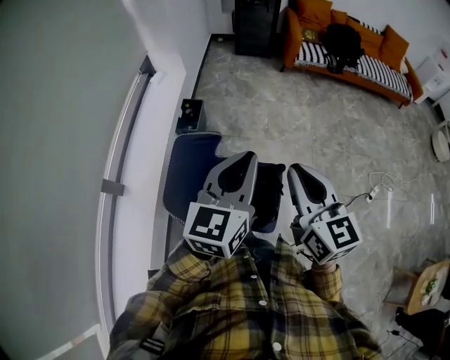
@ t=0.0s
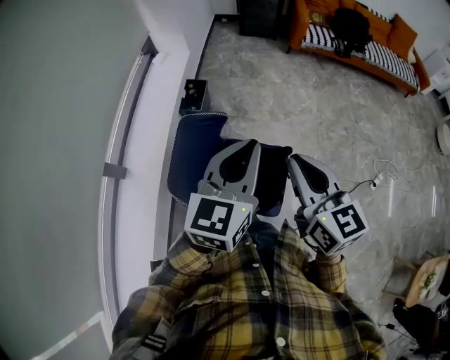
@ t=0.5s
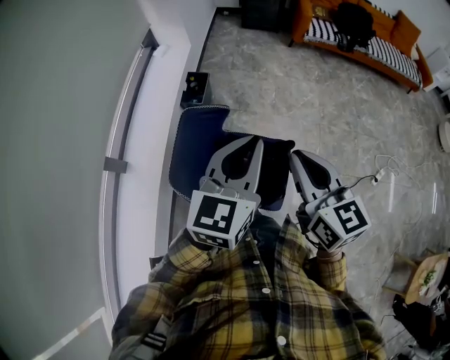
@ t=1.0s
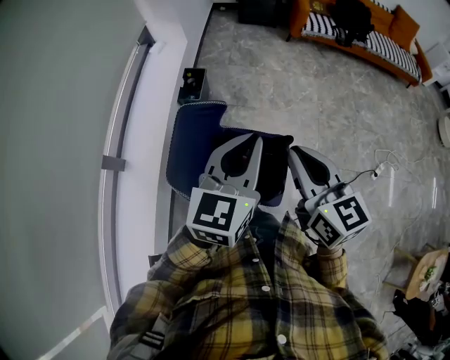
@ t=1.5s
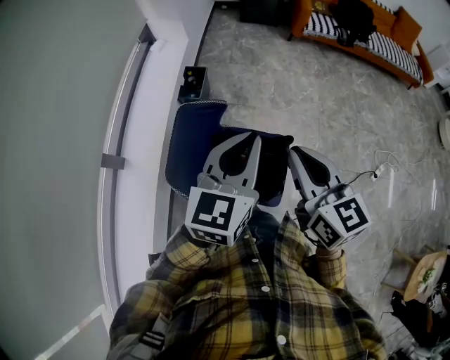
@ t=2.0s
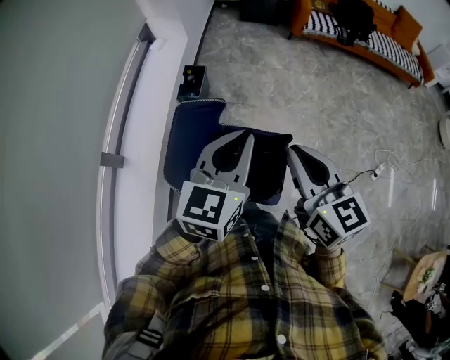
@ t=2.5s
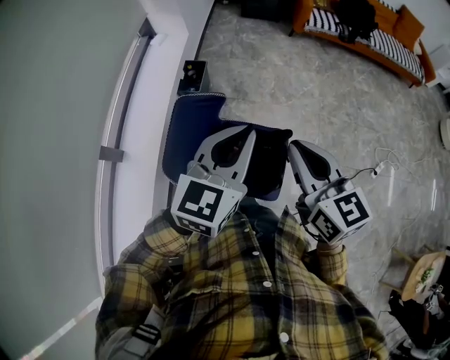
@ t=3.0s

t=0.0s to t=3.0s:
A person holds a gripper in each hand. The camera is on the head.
t=0.0s to t=3.0s: There are only small adjustments of the grippers.

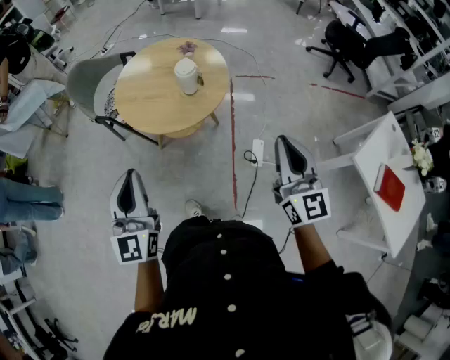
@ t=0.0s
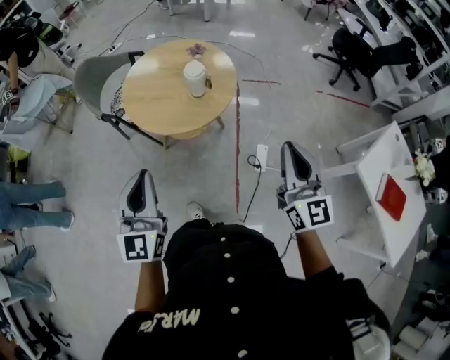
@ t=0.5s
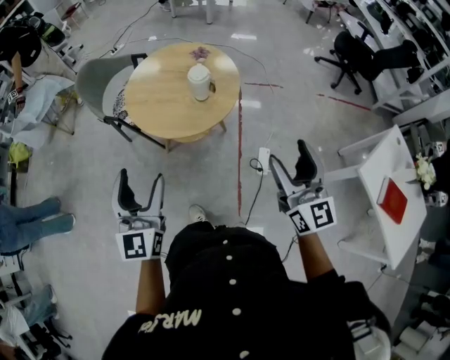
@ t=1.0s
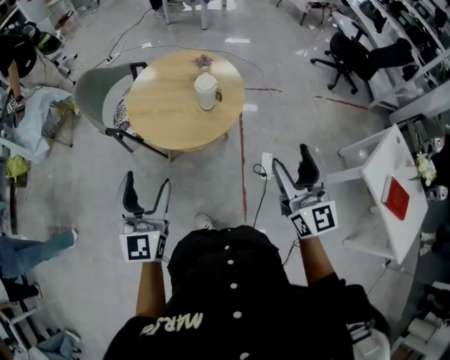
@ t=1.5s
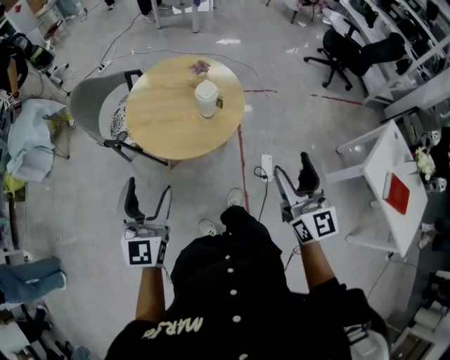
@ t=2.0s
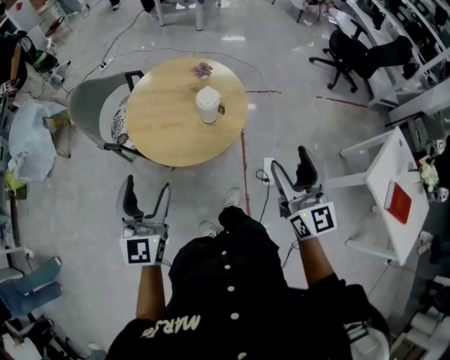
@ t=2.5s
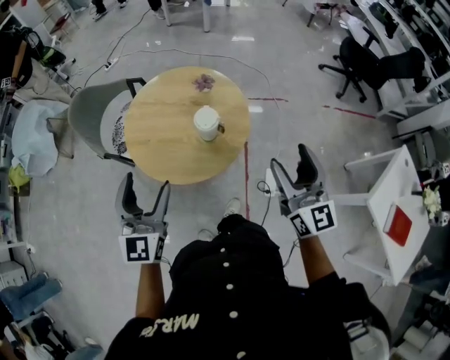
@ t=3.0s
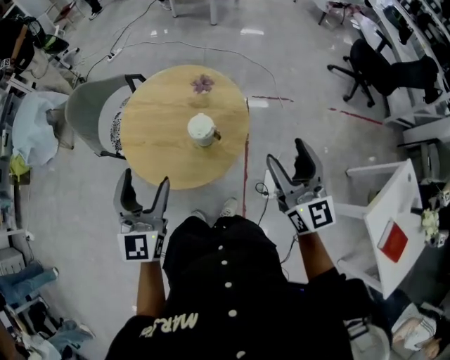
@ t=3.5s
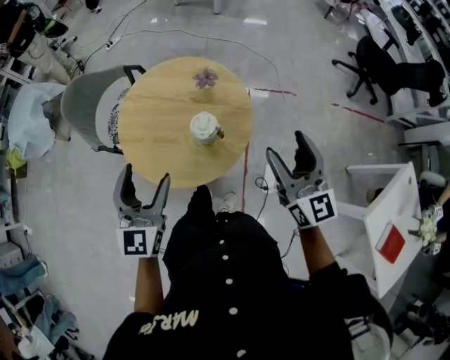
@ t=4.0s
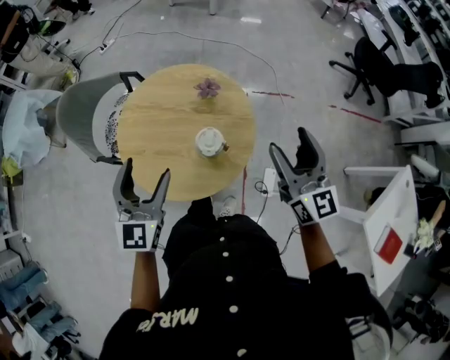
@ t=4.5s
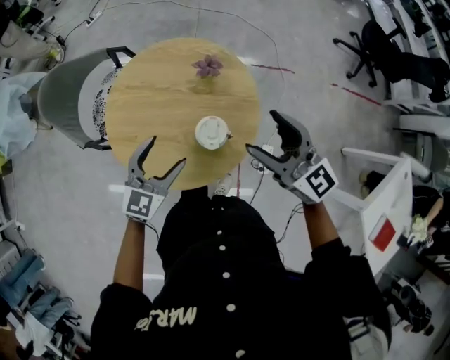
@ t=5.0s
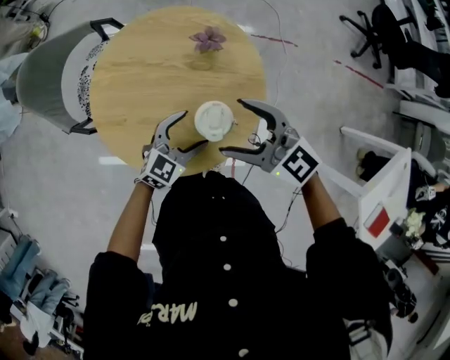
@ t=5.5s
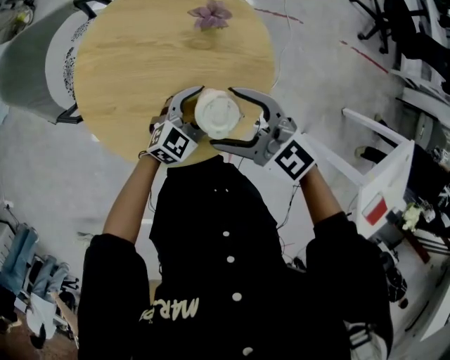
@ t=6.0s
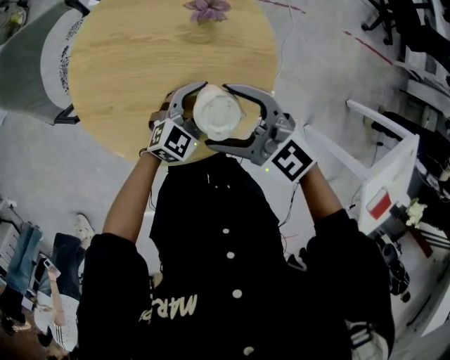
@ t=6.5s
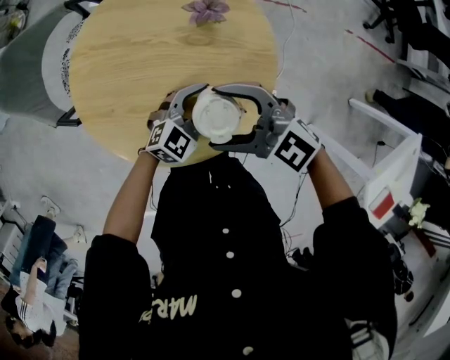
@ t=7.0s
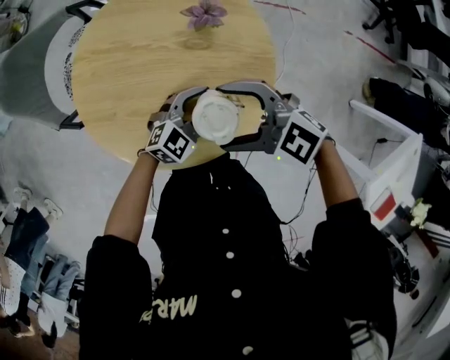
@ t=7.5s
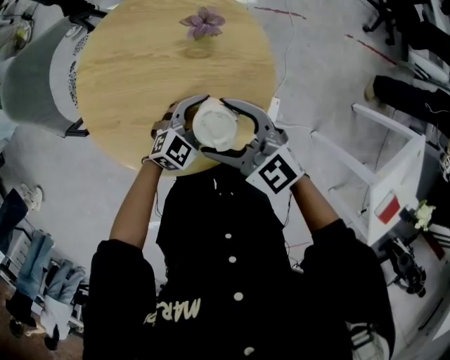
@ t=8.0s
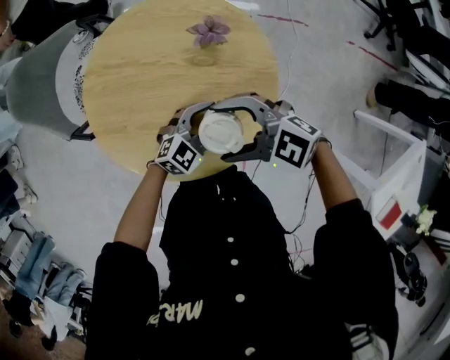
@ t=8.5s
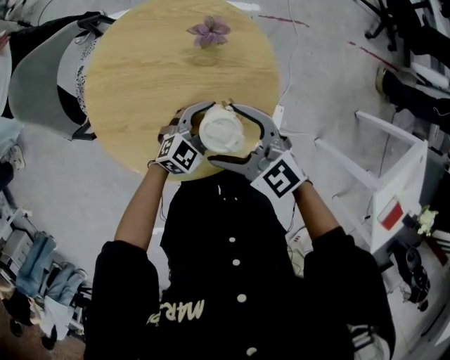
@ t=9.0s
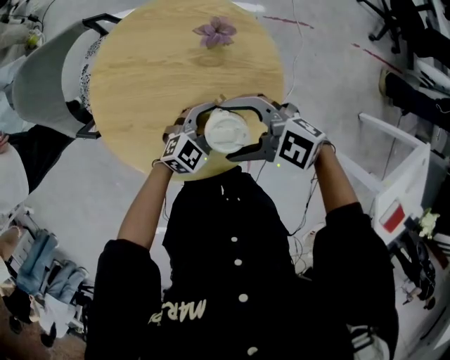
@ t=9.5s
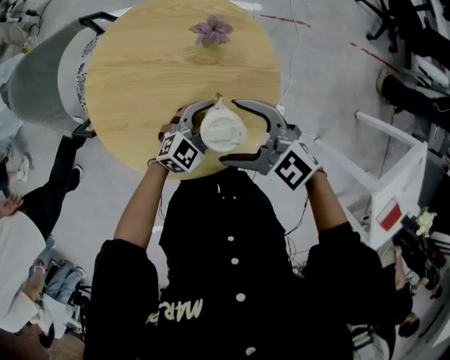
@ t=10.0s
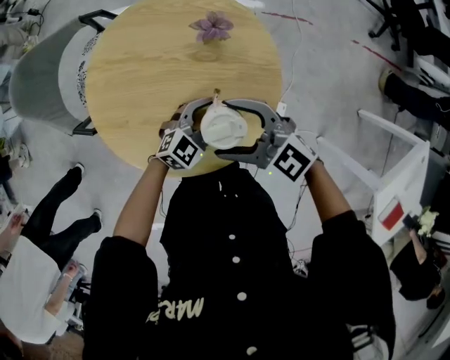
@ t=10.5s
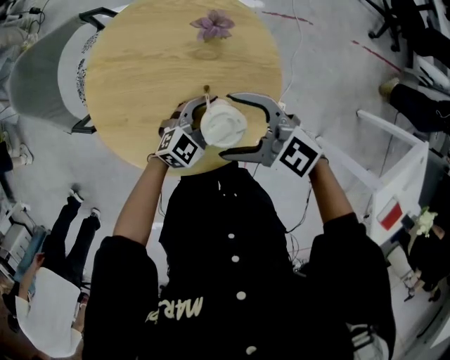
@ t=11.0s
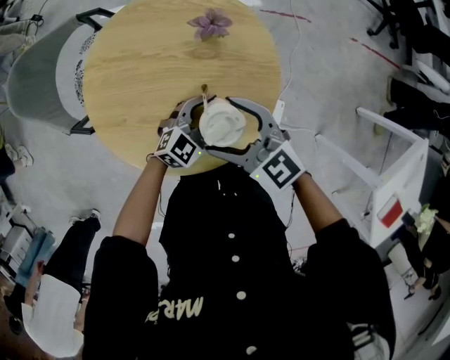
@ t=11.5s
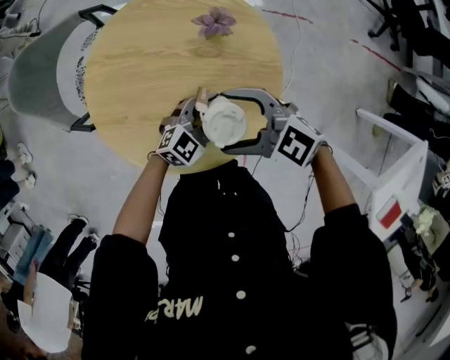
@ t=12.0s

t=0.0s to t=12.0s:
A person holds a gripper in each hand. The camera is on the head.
t=0.0s to t=2.0s: The right gripper heads to the left, covering approximately 10 cm, and opens. The left gripper goes about 10 cm forward and to the left, and opens its fingers.
t=2.0s to t=4.0s: Both grippers move forward, about 25 cm.
t=4.0s to t=6.0s: The left gripper travels downward by some 35 cm, and swivels roughly 50 degrees. The right gripper changes place by about 30 cm, and changes its angle by some 50 degrees.

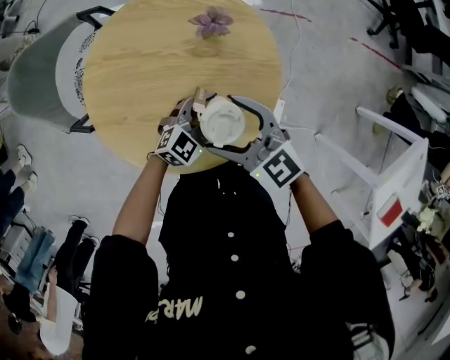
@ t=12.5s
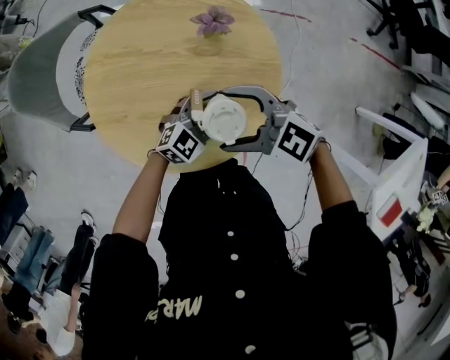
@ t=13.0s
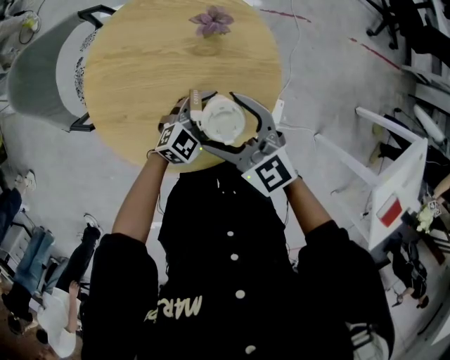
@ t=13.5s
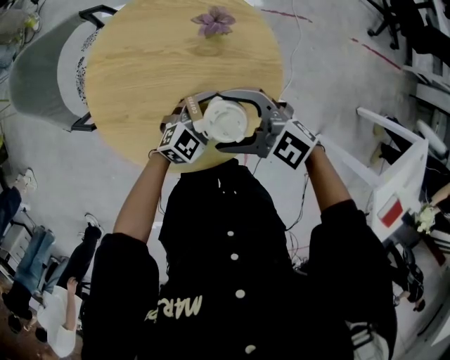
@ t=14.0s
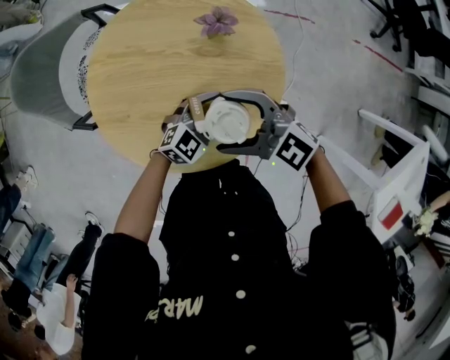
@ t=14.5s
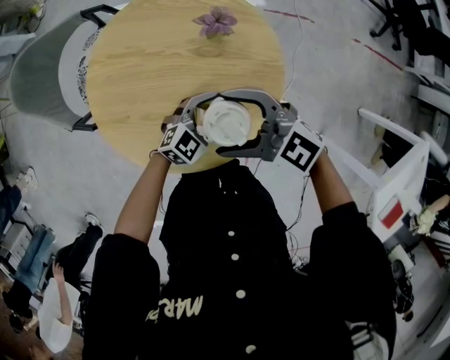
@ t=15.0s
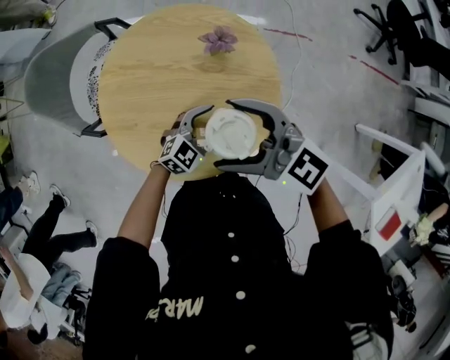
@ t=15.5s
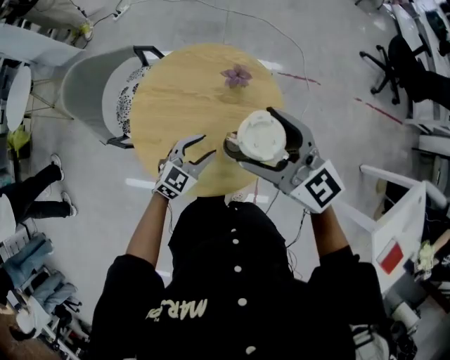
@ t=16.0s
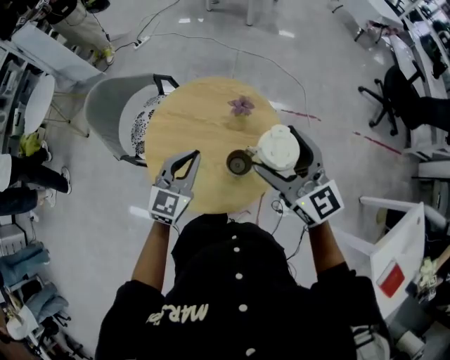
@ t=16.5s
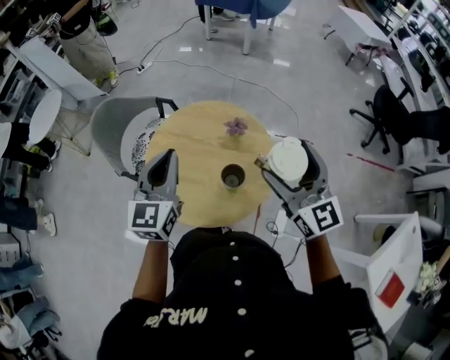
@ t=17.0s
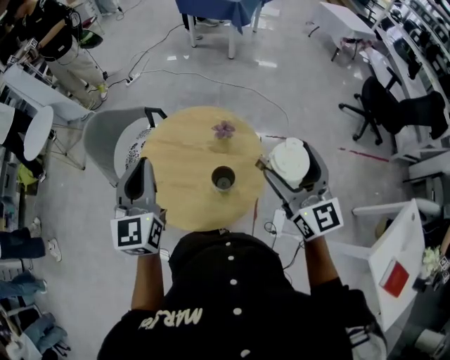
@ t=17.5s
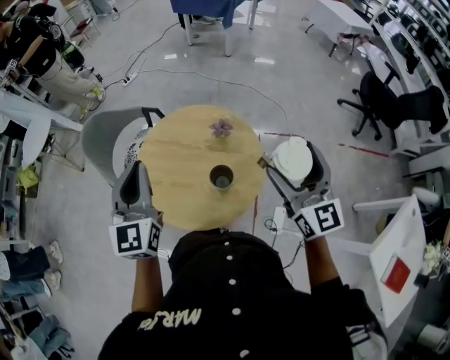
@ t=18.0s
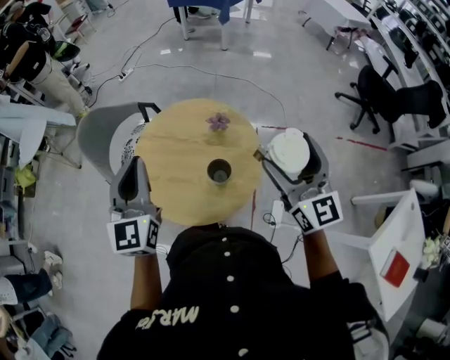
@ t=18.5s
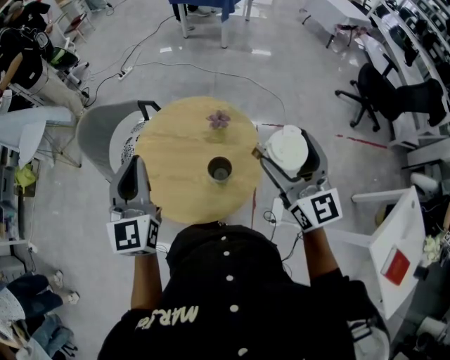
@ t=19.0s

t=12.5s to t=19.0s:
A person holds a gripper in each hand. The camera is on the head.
t=12.5s to t=14.5s: The right gripper swivels approximately 20 degrees.
t=14.5s to t=17.0s: The grippers both shift upward by some 35 cm. The left gripper changes its angle by some 60 degrees, and closes its fingers, while the right gripper changes its angle by some 50 degrees.
t=17.0s to t=19.0s: The left gripper shifts by some 5 cm.

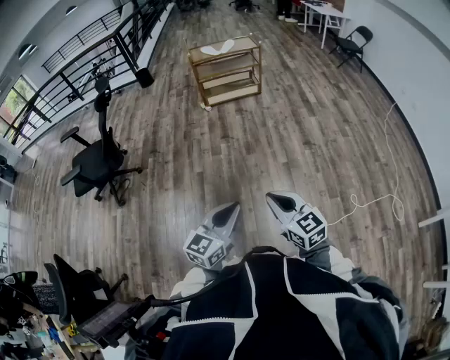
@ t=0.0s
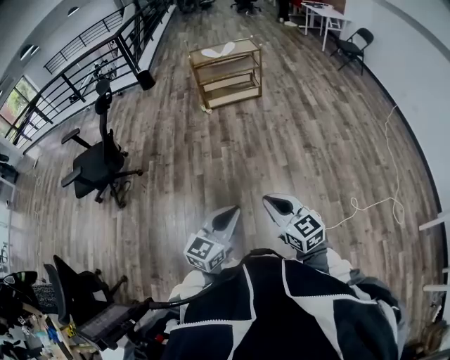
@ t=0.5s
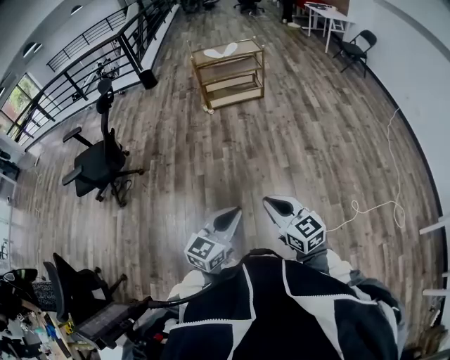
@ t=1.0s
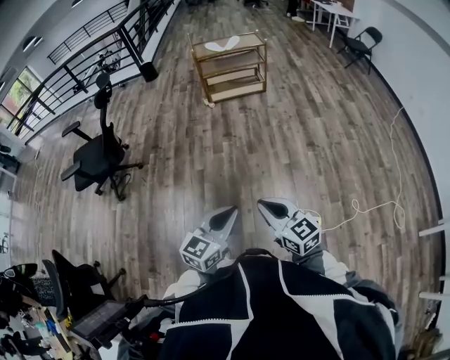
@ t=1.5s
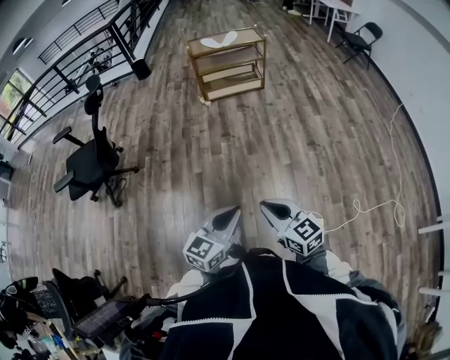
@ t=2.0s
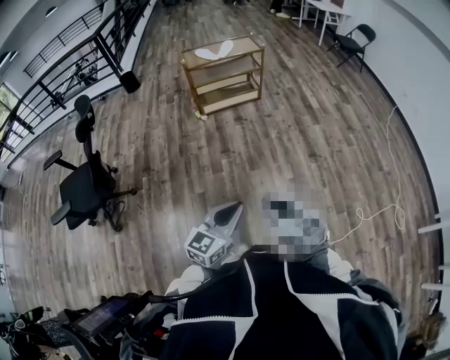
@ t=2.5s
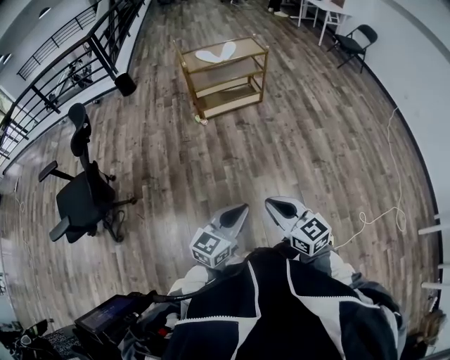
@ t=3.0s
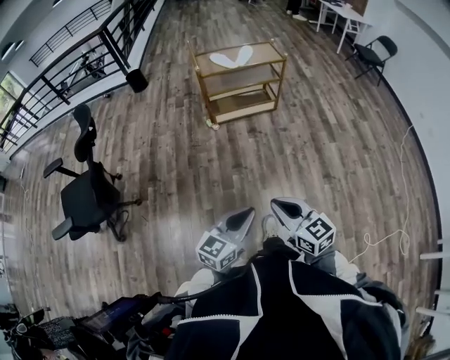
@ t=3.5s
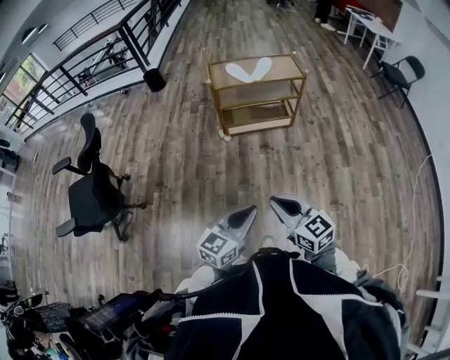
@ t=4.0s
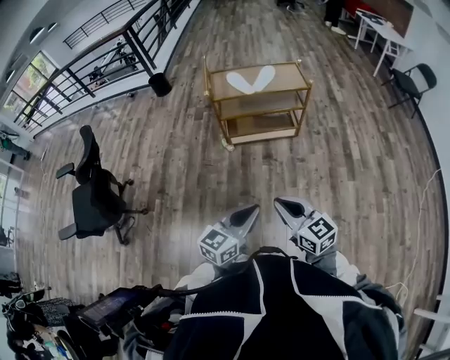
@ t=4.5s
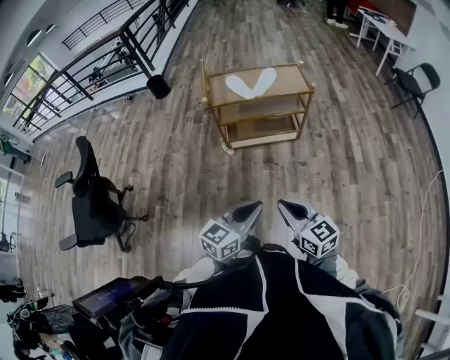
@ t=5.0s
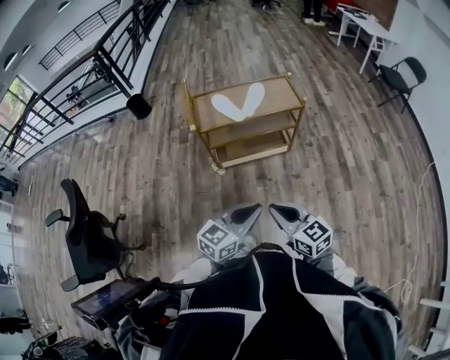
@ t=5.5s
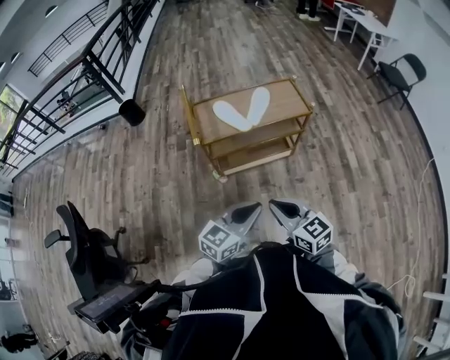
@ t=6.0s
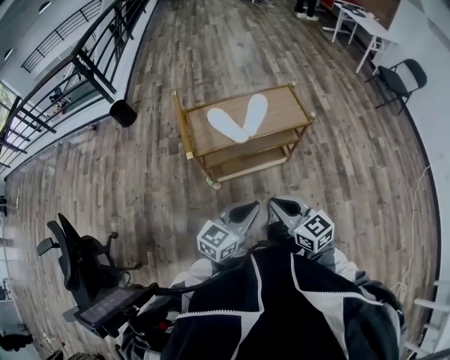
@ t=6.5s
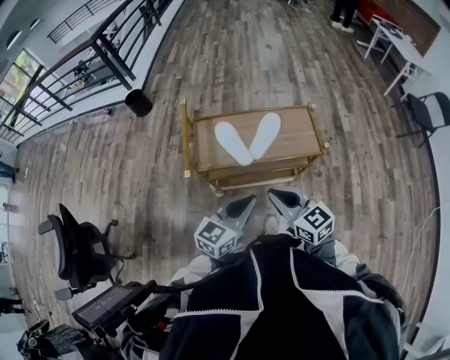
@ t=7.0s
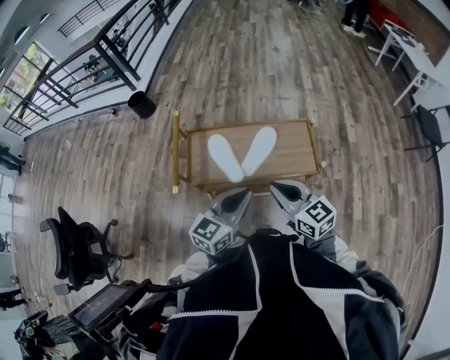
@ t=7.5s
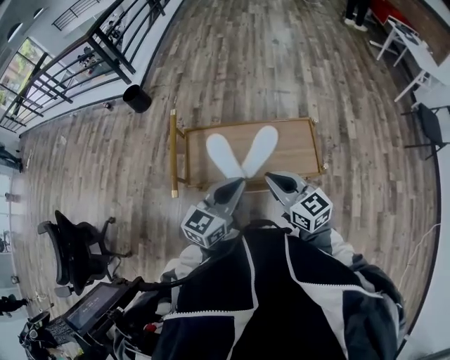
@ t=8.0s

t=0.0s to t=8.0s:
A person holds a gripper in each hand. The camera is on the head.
t=0.0s to t=2.0s: The two grippers go roughly 10 cm forward.
t=2.0s to t=4.0s: The pair of grippers is taken forward, roughly 50 cm.
t=4.0s to t=6.0s: Both grippers move forward, about 40 cm.
t=6.0s to t=8.0s: The grippers both shift forward by roughly 35 cm. The left gripper changes its angle by about 20 degrees.
